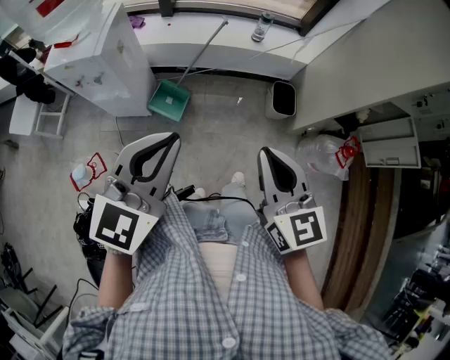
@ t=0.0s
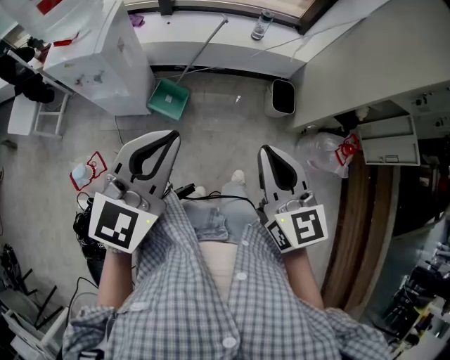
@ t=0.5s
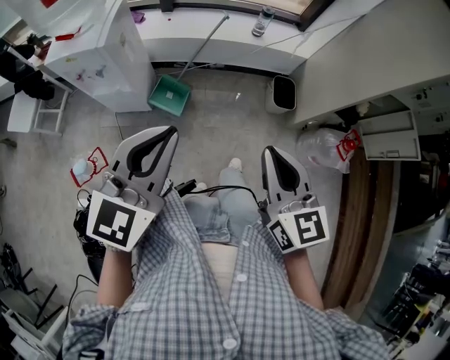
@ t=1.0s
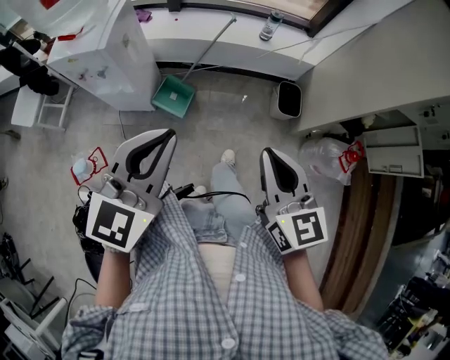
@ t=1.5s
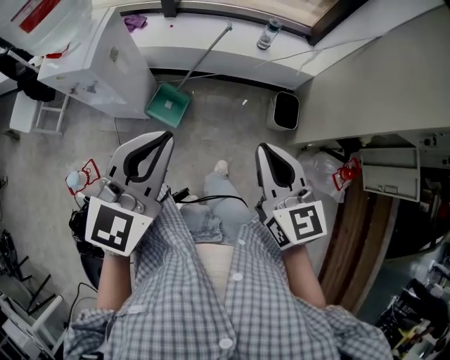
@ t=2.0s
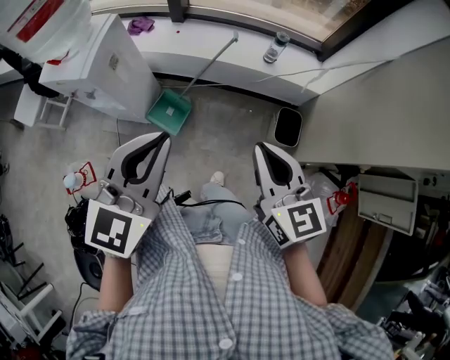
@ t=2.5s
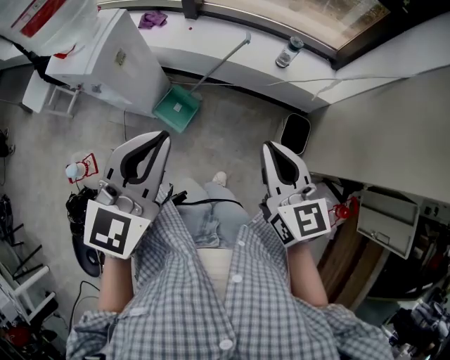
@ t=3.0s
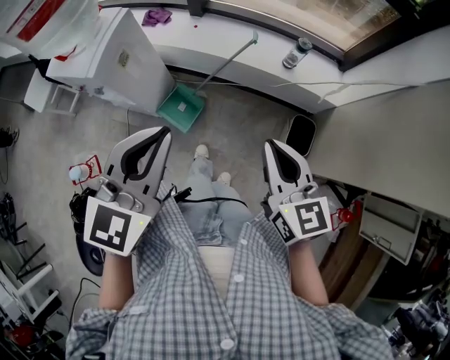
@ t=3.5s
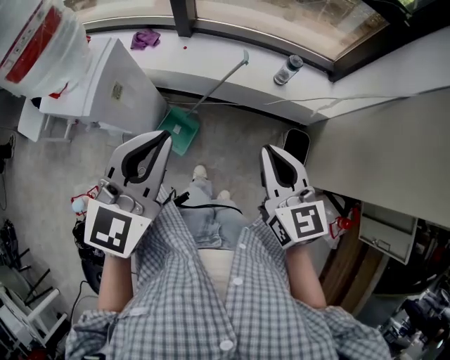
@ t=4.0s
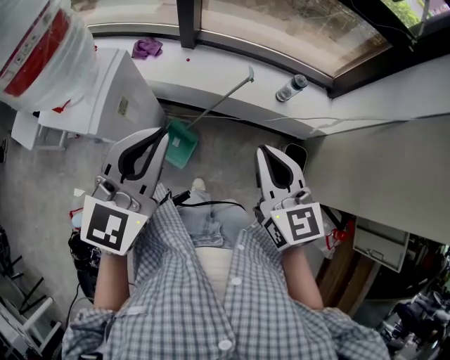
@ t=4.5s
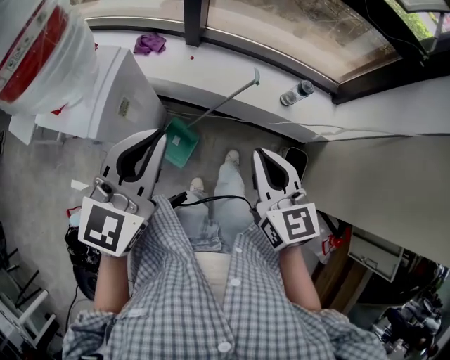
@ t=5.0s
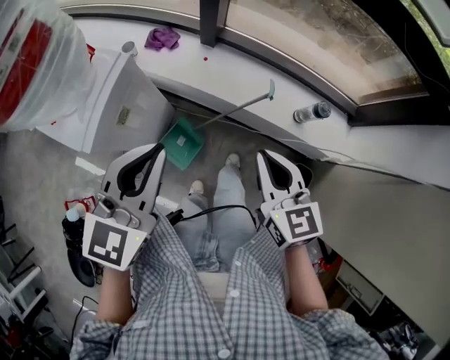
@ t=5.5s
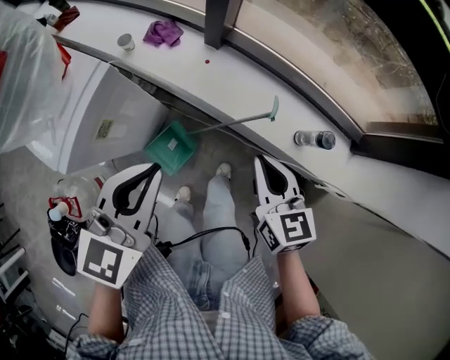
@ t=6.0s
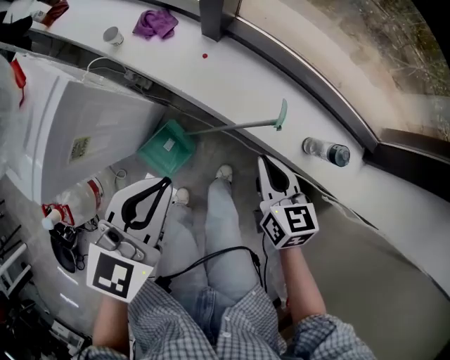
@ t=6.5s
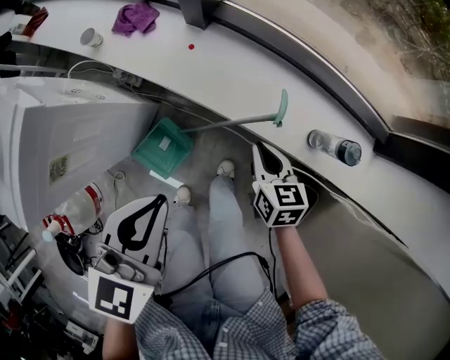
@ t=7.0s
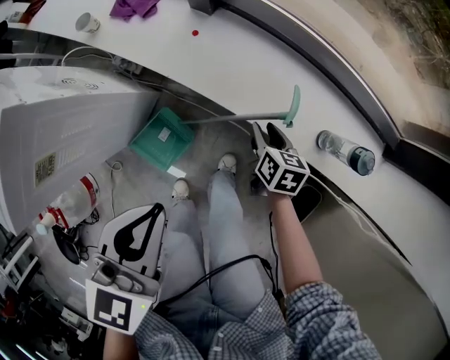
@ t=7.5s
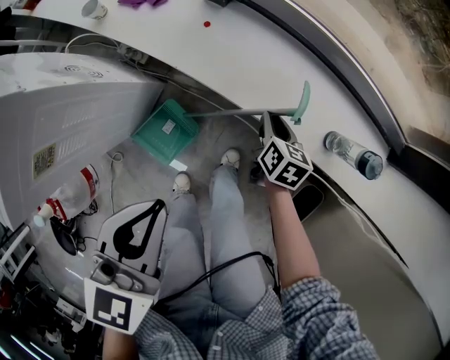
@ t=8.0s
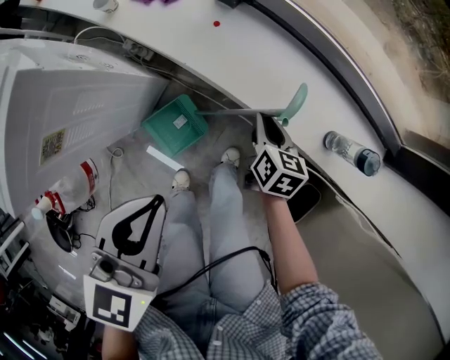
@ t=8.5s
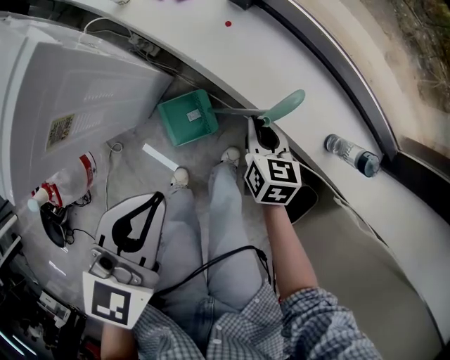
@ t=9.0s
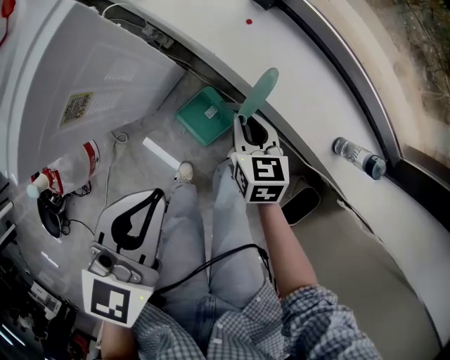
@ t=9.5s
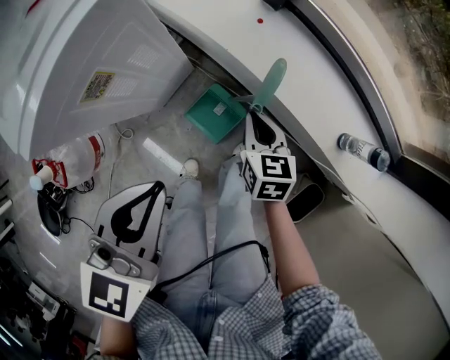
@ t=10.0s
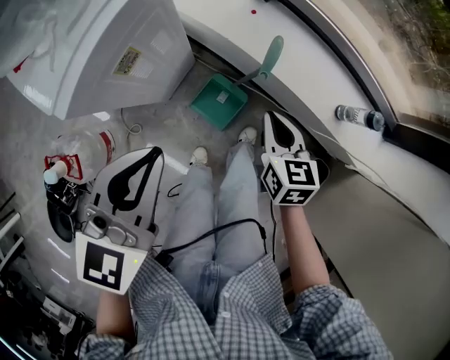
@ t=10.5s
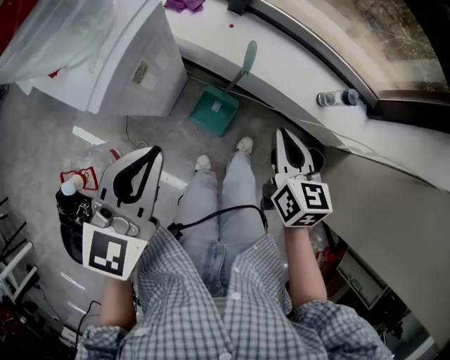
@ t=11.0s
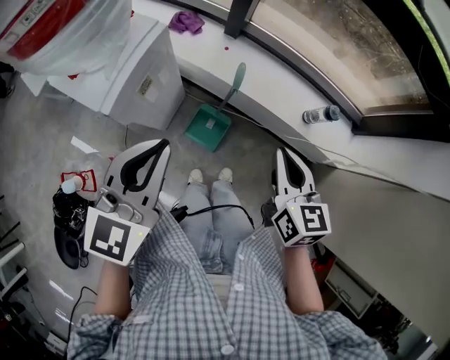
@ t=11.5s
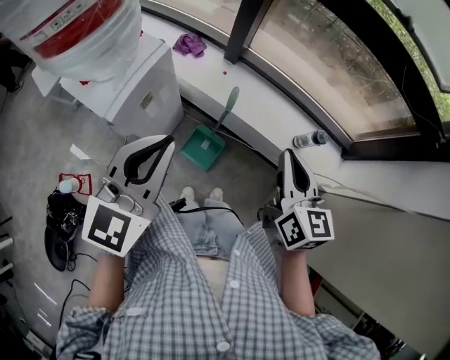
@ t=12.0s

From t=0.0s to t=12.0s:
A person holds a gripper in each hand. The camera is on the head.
From t=0.0s to t=2.0s: Both grippers travel together forward, about 10 cm.
From t=2.0s to t=4.0s: The two grippers go roughly 20 cm forward.
From t=4.0s to t=6.0s: The two grippers go approximately 25 cm forward and downward. The left gripper changes its angle by about 20 degrees.
From t=6.0s to t=8.0s: The right gripper heads downward, covering about 35 cm, and rotates roughly 30 degrees; the left gripper is displaced downward by about 15 cm.
From t=8.0s to t=10.0s: The right gripper moves to the left, upward and backward, roughly 20 cm, and swivels some 30 degrees; the left gripper shifts about 15 cm to the left and backward.
From t=10.0s to t=12.0s: The right gripper moves upward, about 40 cm, and rotates some 30 degrees; the left gripper moves upward, about 20 cm, and changes its angle by some 20 degrees.

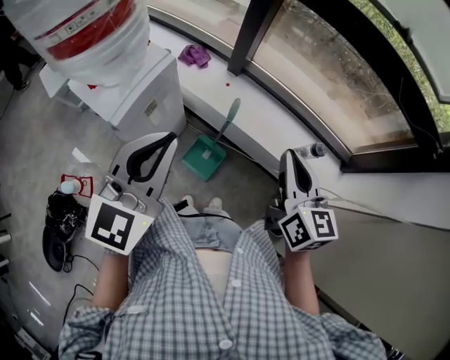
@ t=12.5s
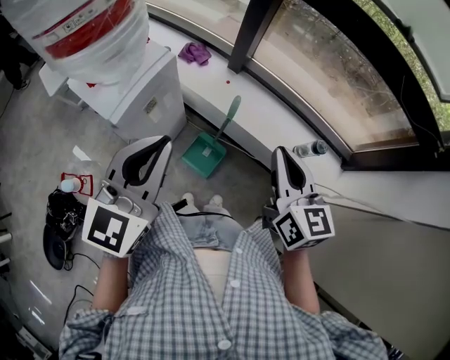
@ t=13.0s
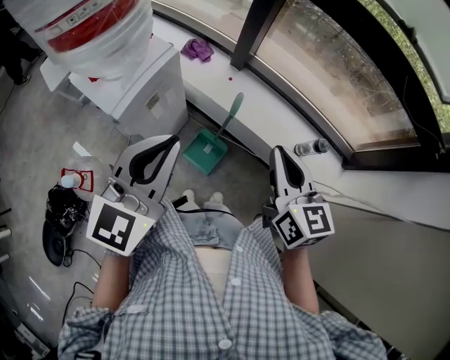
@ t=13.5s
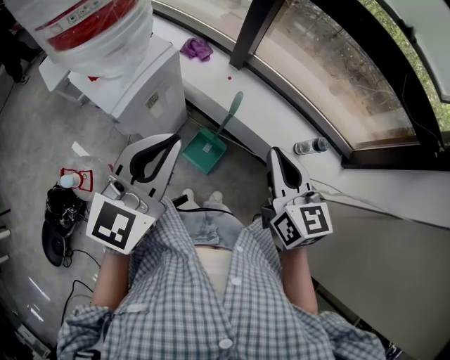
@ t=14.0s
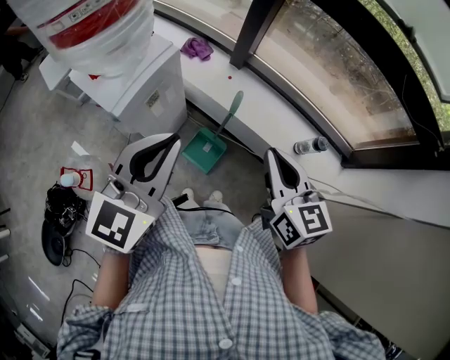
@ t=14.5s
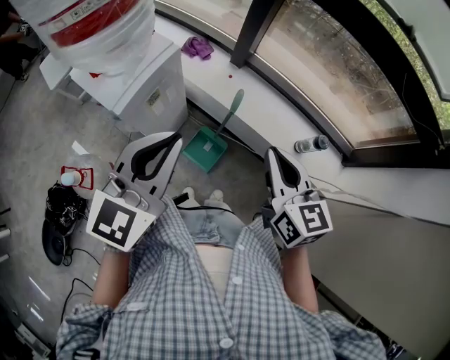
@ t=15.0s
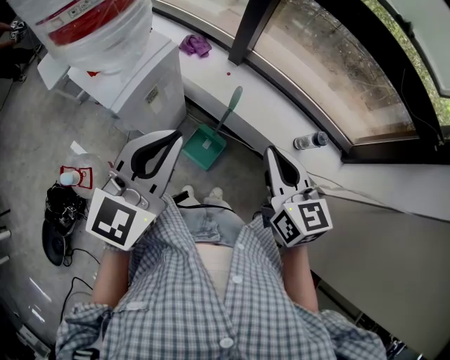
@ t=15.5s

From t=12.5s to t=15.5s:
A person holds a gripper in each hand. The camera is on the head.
From t=12.5s to t=15.5s: There are only small adjustments of the grippers.

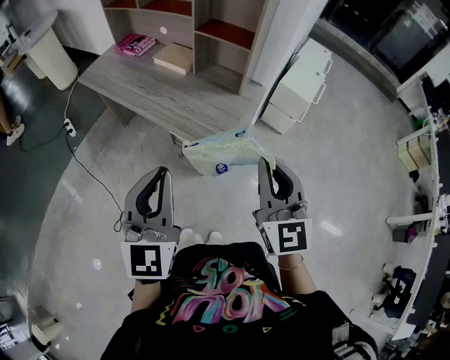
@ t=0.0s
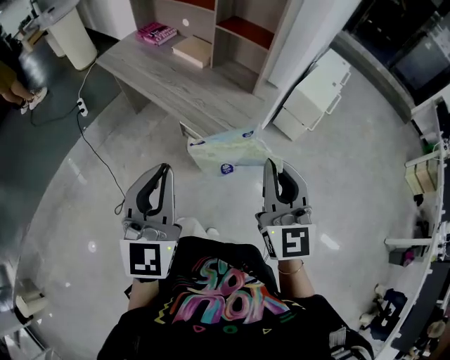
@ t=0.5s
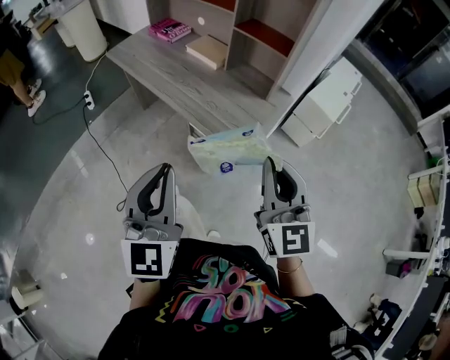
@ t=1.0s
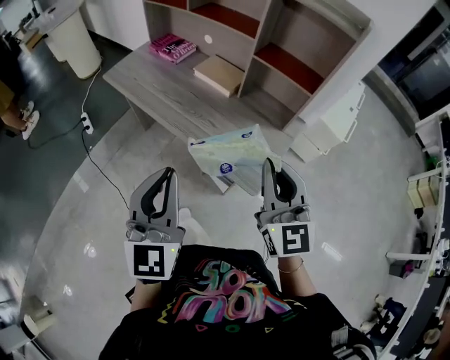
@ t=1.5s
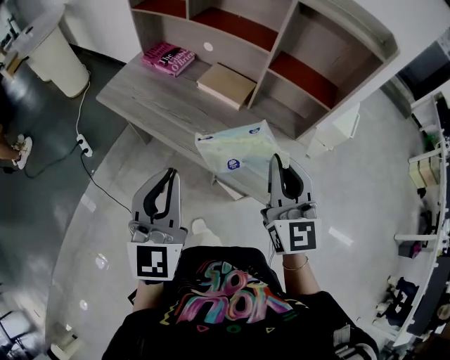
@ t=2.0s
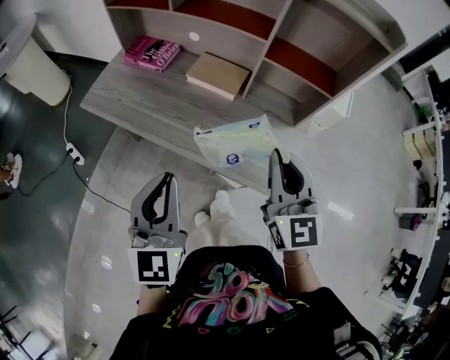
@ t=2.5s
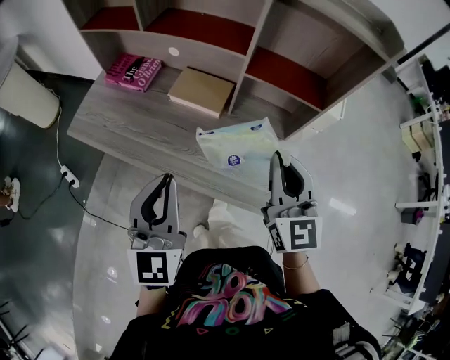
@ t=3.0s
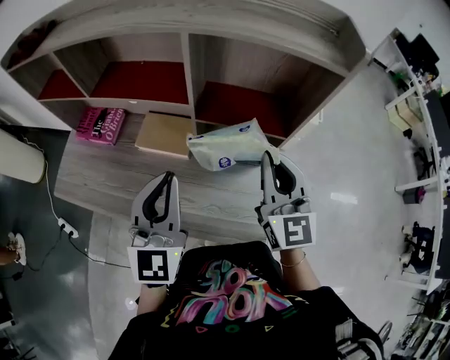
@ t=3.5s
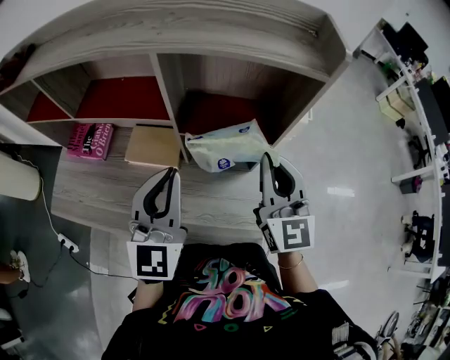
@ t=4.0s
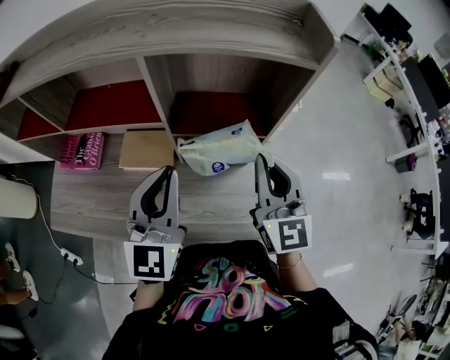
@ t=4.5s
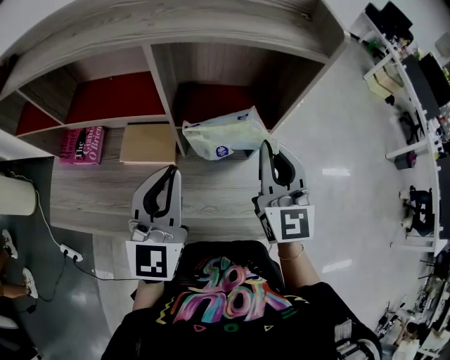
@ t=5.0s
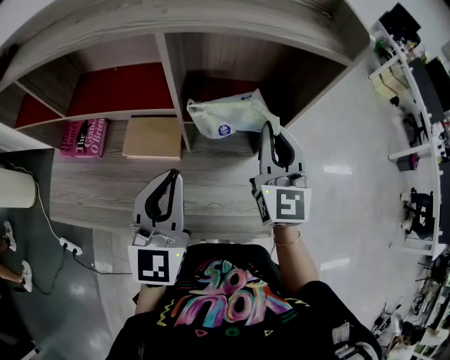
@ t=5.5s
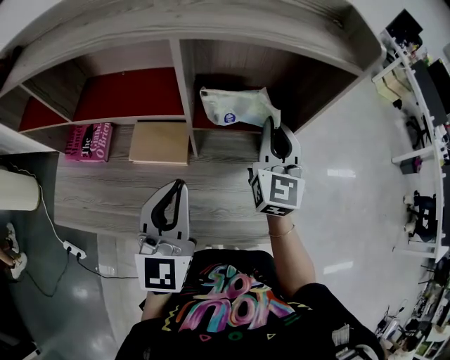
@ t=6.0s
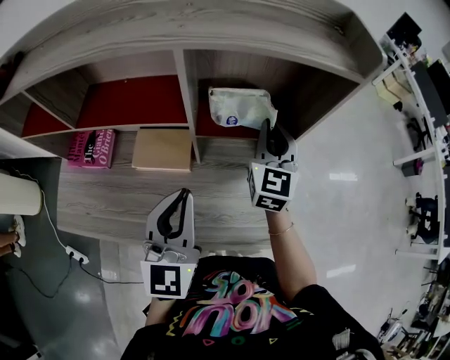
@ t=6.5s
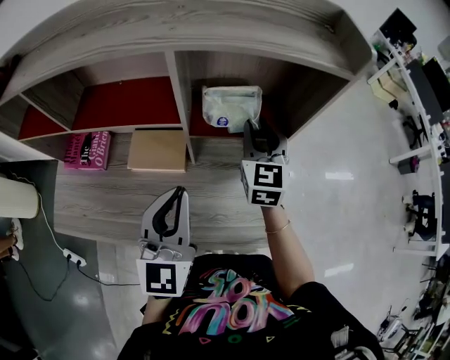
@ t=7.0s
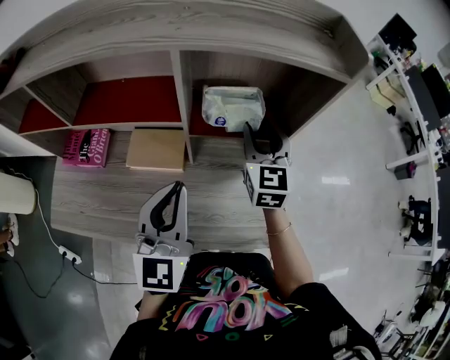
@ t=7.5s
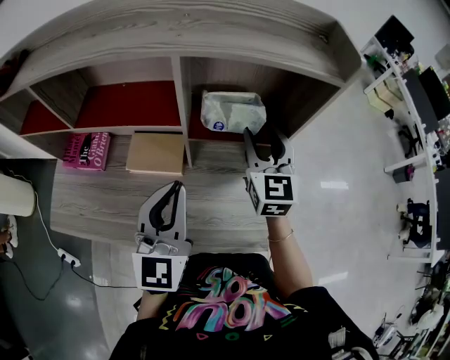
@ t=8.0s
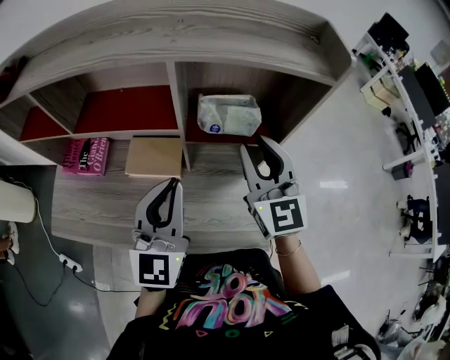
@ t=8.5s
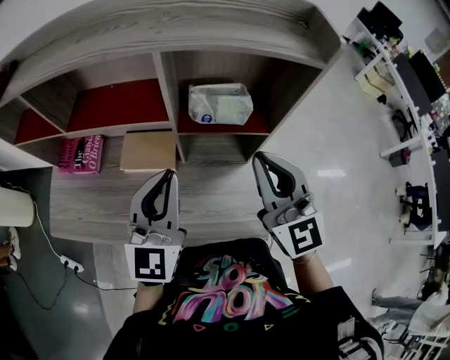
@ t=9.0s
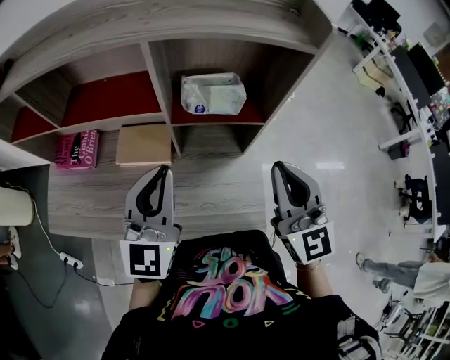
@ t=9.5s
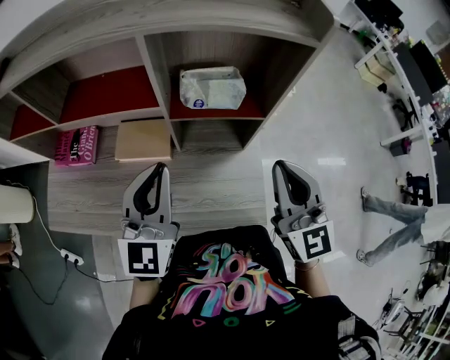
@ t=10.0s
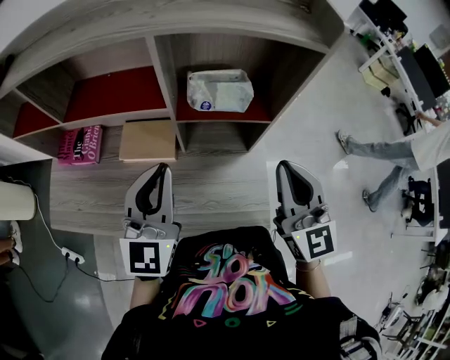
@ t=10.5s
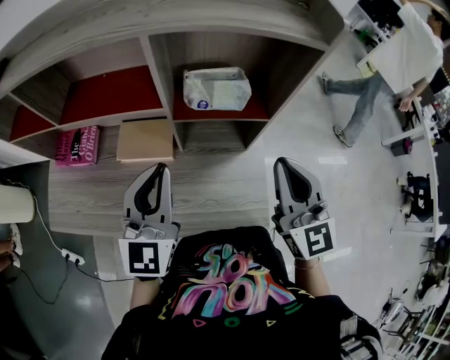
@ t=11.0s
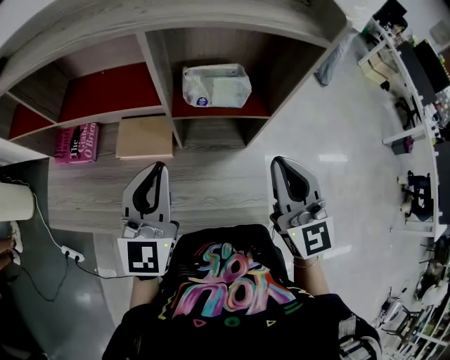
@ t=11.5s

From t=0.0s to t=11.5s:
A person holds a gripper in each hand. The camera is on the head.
From t=0.0s to t=2.0s: Both grippers move forward and to the left, roughly 35 cm.
From t=2.0s to t=4.0s: Both grippers move forward and to the right, some 30 cm. The left gripper rotates about 30 degrees. Meanwhile the right gripper changes its angle by about 20 degrees.
From t=4.0s to t=6.0s: The left gripper ends up roughly 5 cm from where it was. Meanwhile the right gripper goes some 10 cm forward.
From t=6.0s to t=7.5s: The right gripper opens up.
From t=7.5s to t=9.5s: The right gripper is displaced backward and upward by approximately 20 cm, rotates roughly 20 degrees, and closes its fingers.
From t=9.5s to t=11.5s: The grippers move only a little.
